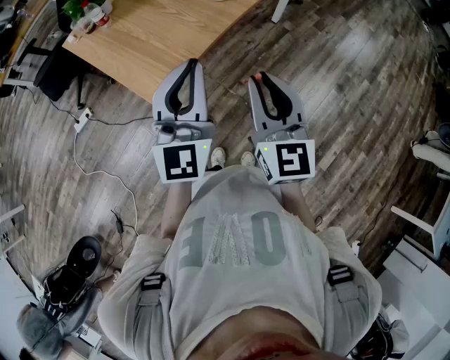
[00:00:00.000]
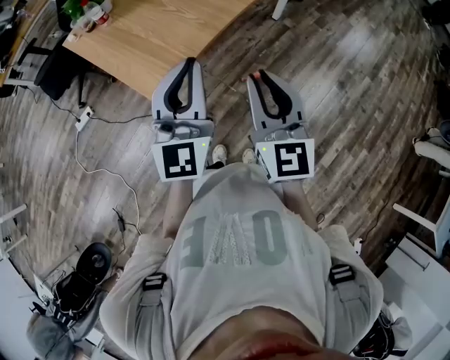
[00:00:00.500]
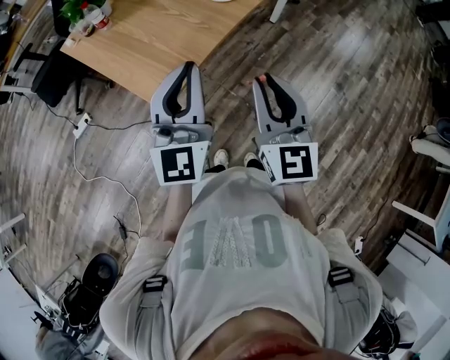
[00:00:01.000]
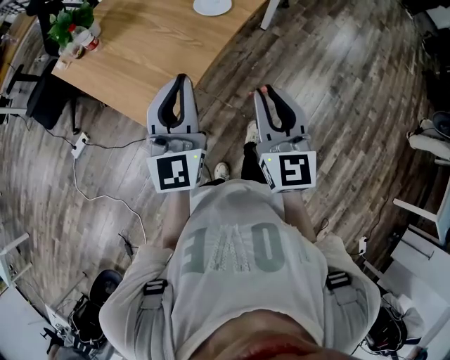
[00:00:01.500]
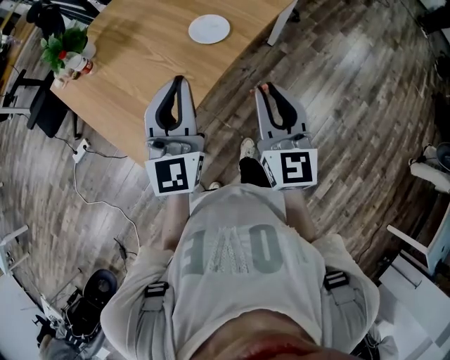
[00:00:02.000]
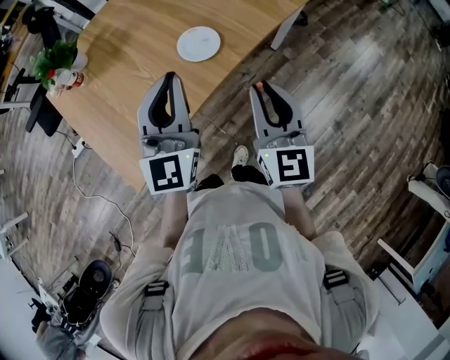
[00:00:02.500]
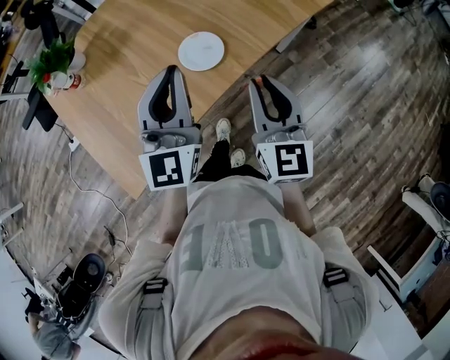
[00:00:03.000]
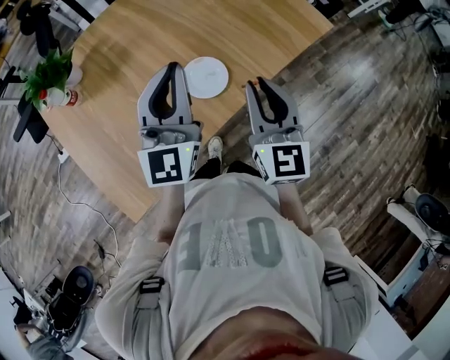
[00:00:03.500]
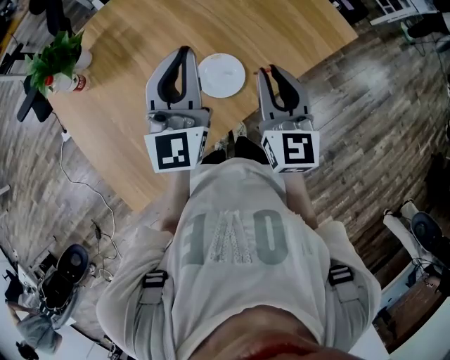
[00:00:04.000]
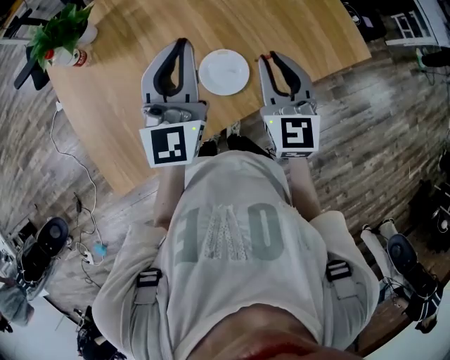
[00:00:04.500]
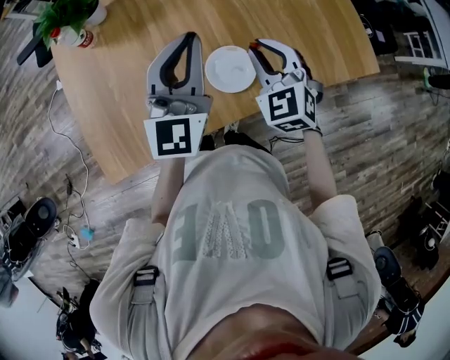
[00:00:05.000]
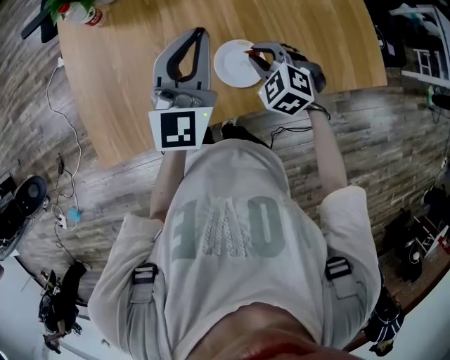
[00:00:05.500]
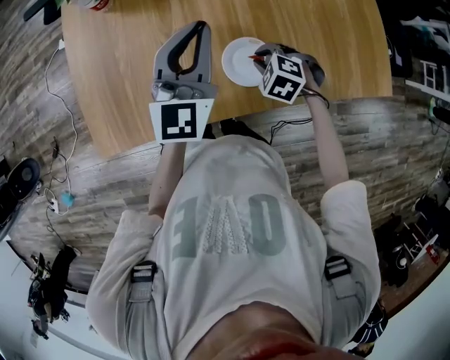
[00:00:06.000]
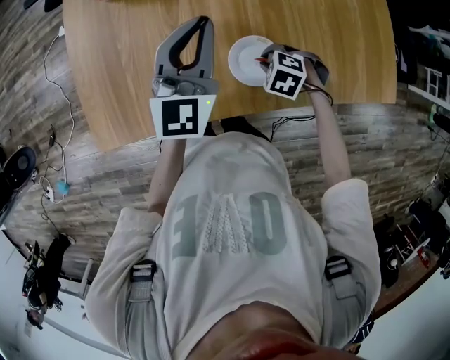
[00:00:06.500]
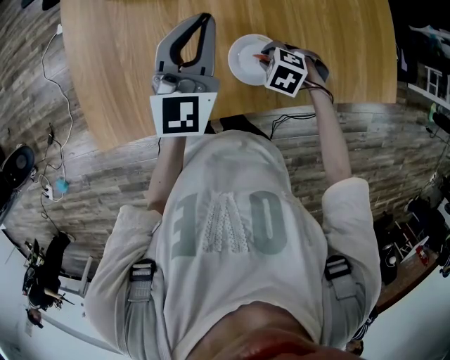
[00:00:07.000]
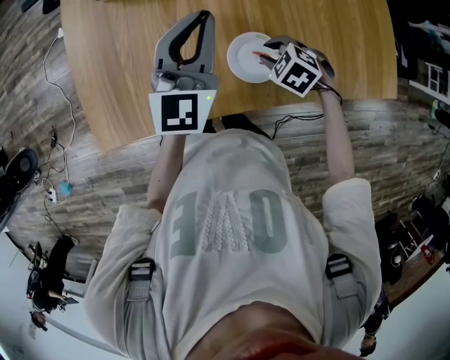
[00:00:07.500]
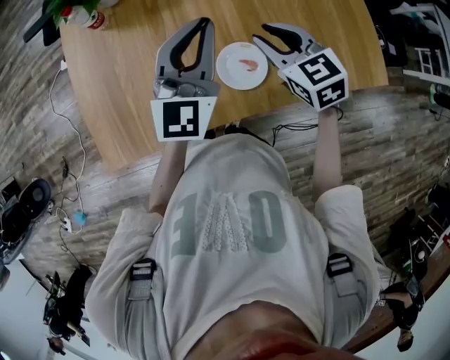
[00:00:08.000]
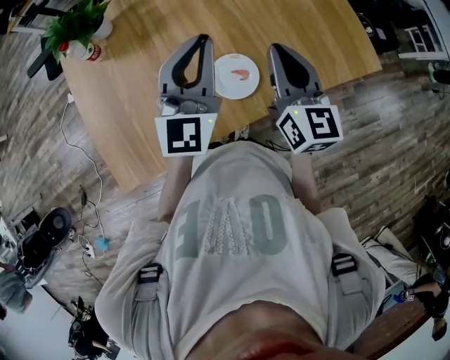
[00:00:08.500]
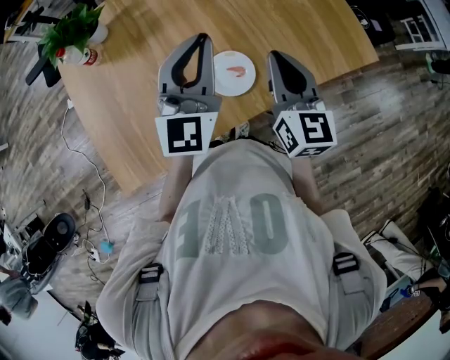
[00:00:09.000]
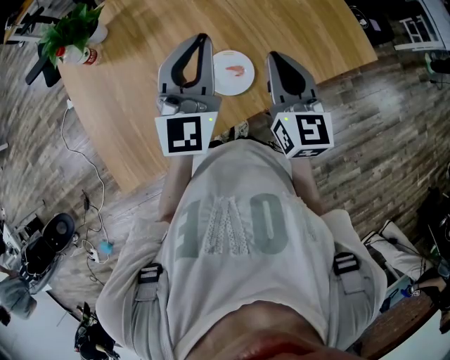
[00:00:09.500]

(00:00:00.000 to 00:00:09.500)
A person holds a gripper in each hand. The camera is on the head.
00:00:00.000 - 00:00:02.000: Both grippers move forward, roughly 20 cm.
00:00:02.000 - 00:00:04.000: The two grippers go some 30 cm forward.
00:00:04.000 - 00:00:05.500: The right gripper shifts approximately 15 cm downward, and angles its fingers downward, by some 50 degrees, while the left gripper moves about 5 cm.
00:00:05.500 - 00:00:07.500: The right gripper moves downward, approximately 5 cm, and changes its angle by some 20 degrees.
00:00:07.500 - 00:00:09.500: The left gripper changes place by roughly 10 cm. The right gripper moves upward, about 25 cm, points its fingers some 60 degrees further upward, and closes up.

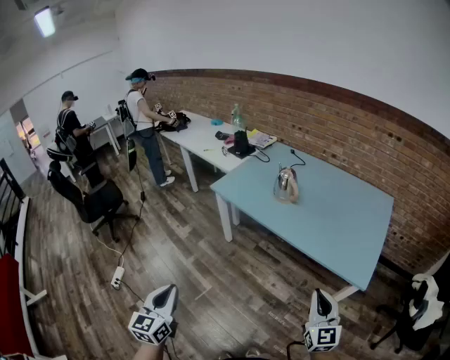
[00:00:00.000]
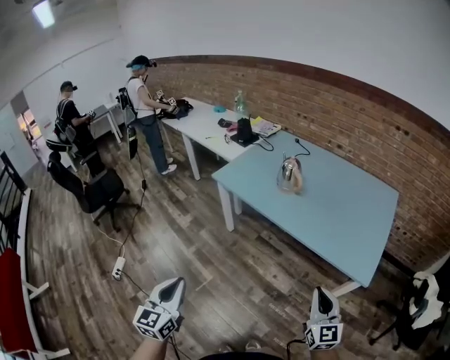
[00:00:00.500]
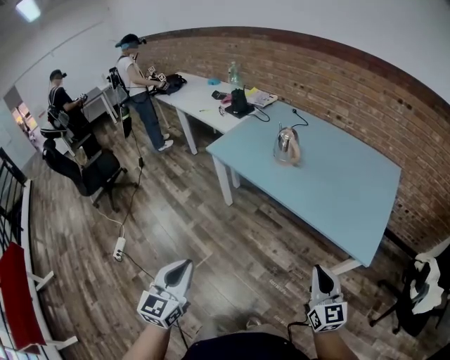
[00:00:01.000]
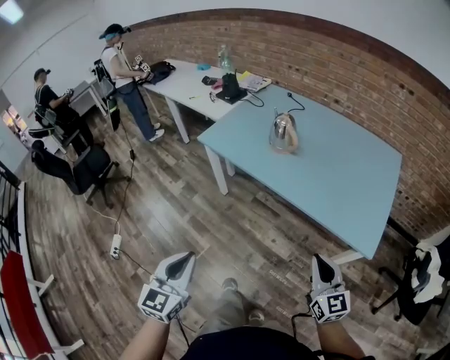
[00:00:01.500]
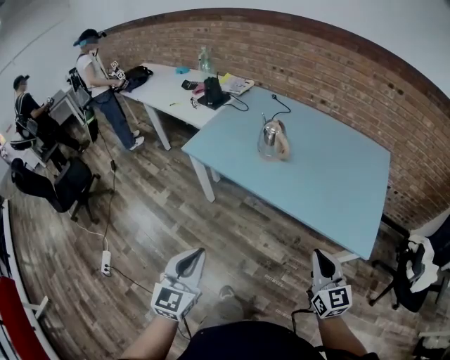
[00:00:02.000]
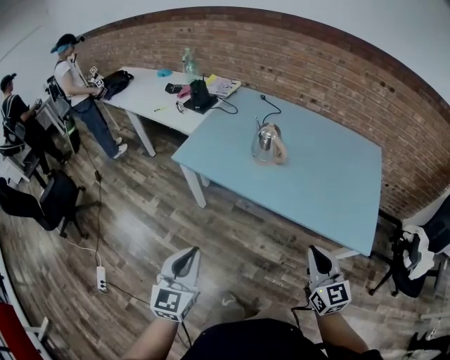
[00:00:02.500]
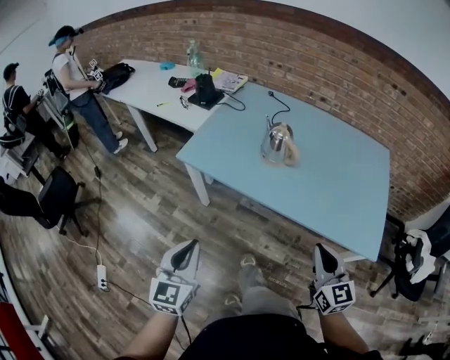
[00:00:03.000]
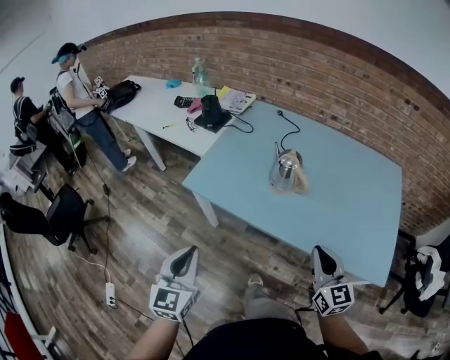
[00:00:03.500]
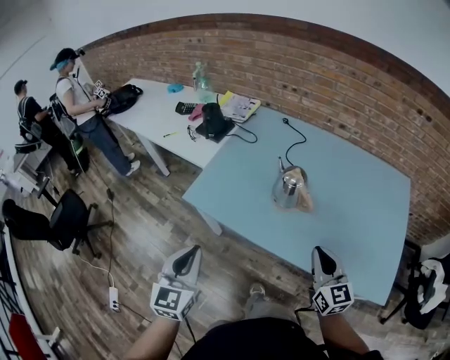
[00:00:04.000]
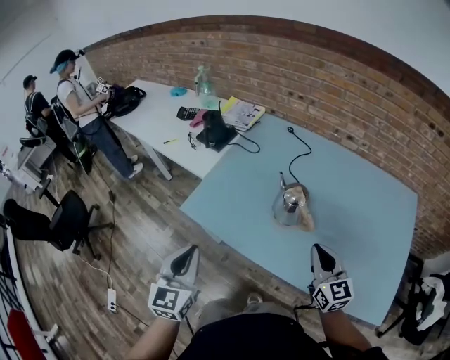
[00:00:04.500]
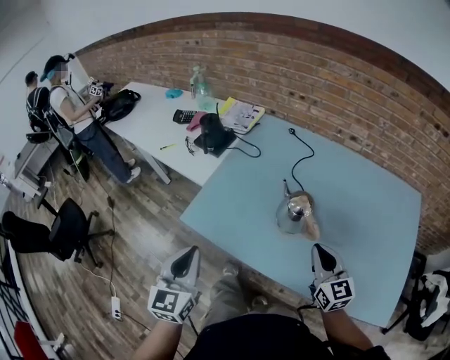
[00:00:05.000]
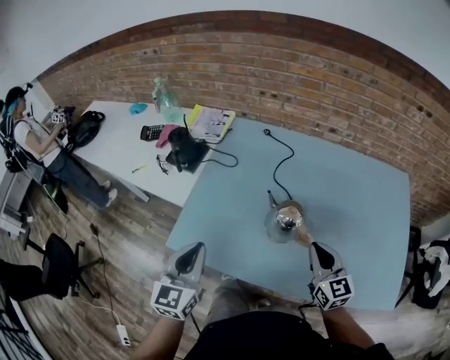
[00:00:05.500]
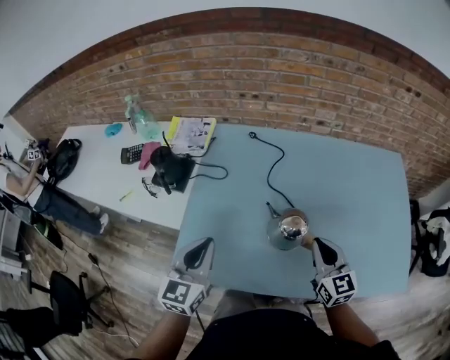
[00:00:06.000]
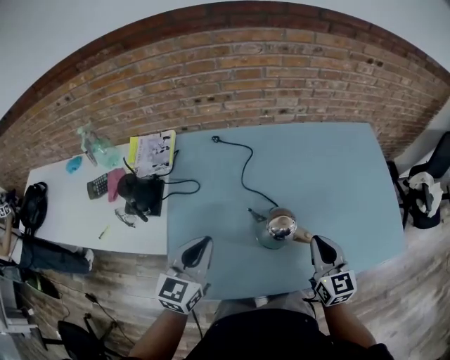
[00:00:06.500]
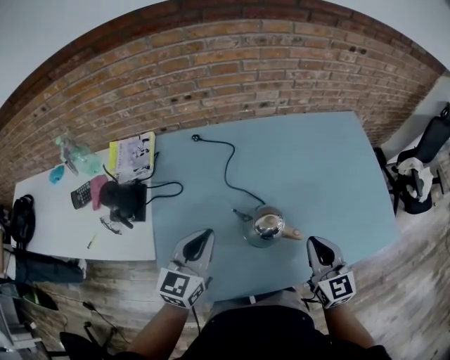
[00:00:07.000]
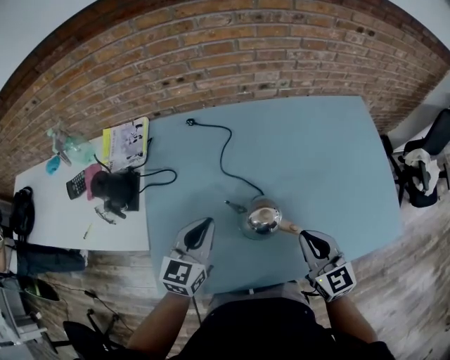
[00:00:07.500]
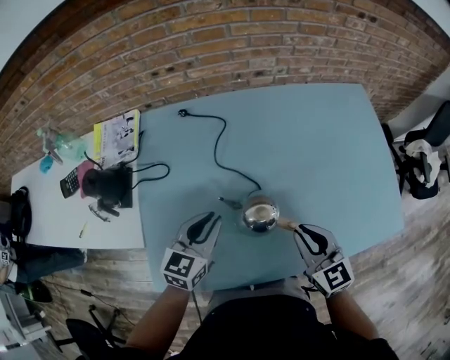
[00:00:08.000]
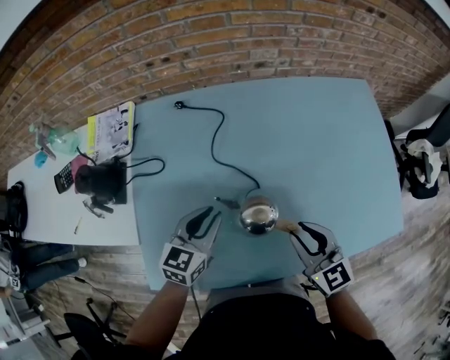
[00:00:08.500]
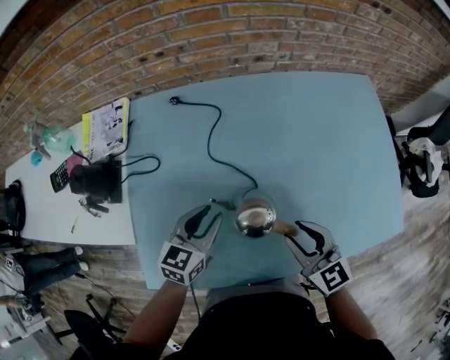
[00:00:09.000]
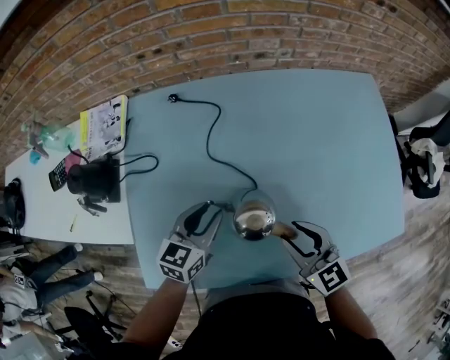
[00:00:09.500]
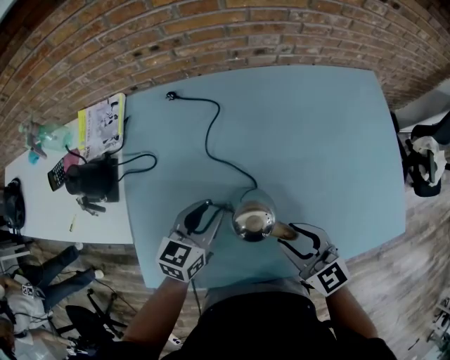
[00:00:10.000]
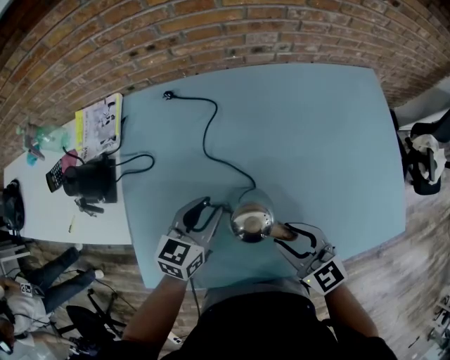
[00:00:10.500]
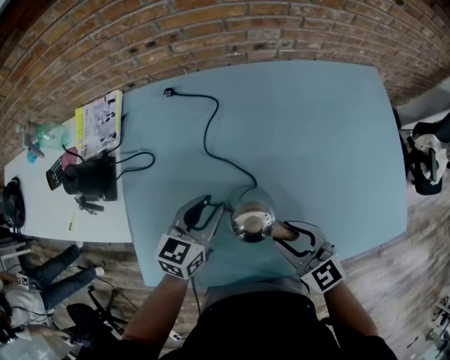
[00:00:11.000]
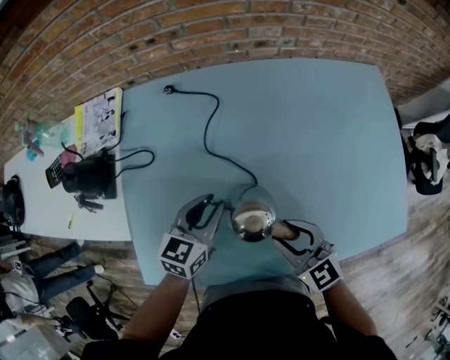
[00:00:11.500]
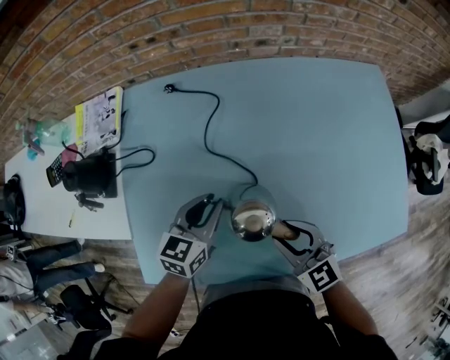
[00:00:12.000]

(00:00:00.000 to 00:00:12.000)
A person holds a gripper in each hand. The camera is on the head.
00:00:00.000 - 00:00:02.000: The right gripper heads forward, covering roughly 10 cm; the left gripper goes some 20 cm forward and to the right, and rotates about 20 degrees.
00:00:02.000 - 00:00:04.000: Both grippers travel together forward, some 25 cm.
00:00:04.000 - 00:00:06.000: The right gripper goes some 20 cm forward, while the left gripper shifts approximately 30 cm forward, and turns by about 20 degrees.
00:00:06.000 - 00:00:08.000: The left gripper moves forward, to the right and downward, some 20 cm, and changes its angle by some 30 degrees.
00:00:08.000 - 00:00:10.000: The left gripper moves some 5 cm. Meanwhile the right gripper opens.
00:00:10.000 - 00:00:12.000: There are only small adjustments of the grippers.

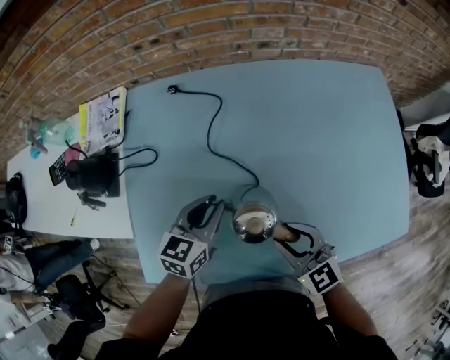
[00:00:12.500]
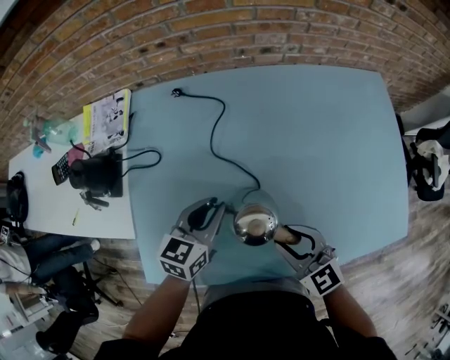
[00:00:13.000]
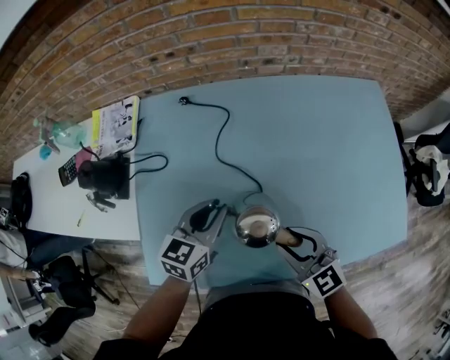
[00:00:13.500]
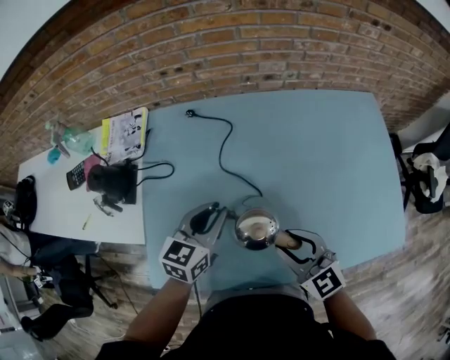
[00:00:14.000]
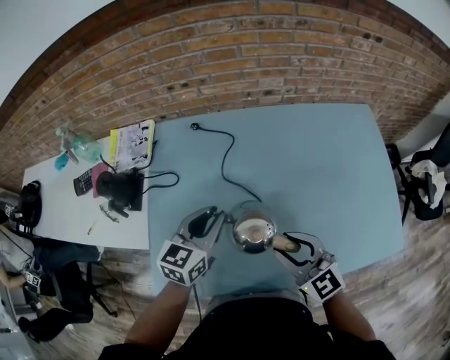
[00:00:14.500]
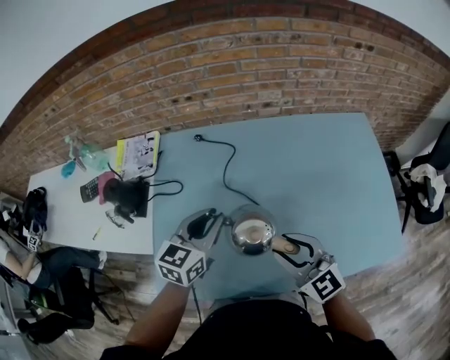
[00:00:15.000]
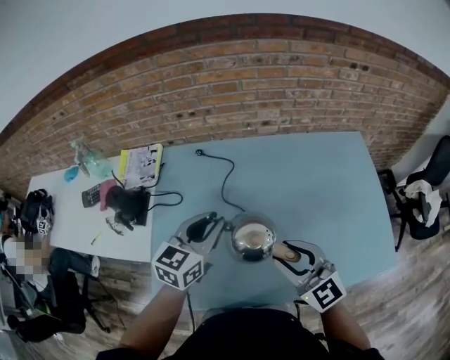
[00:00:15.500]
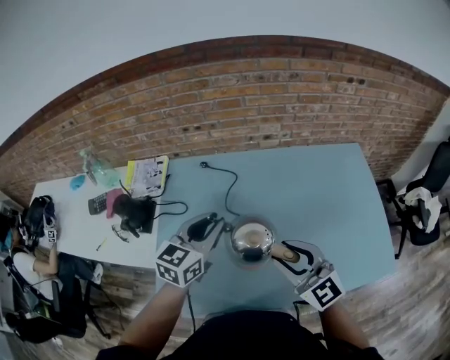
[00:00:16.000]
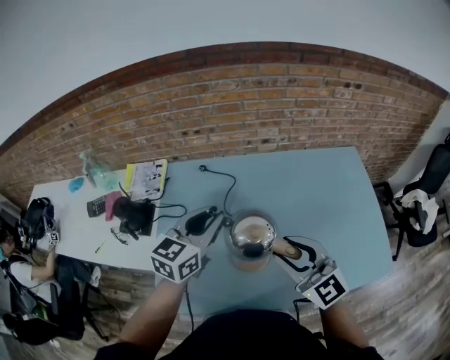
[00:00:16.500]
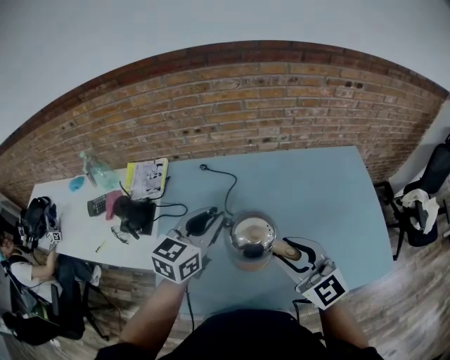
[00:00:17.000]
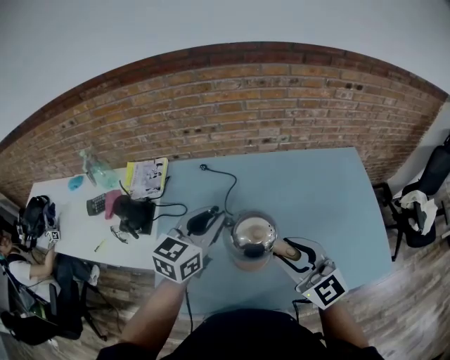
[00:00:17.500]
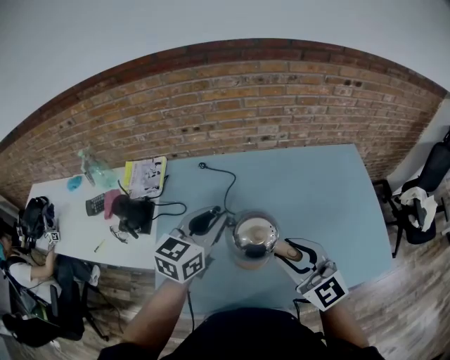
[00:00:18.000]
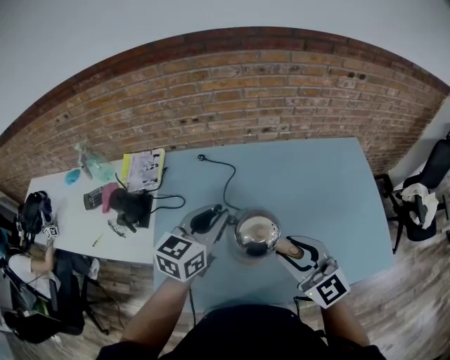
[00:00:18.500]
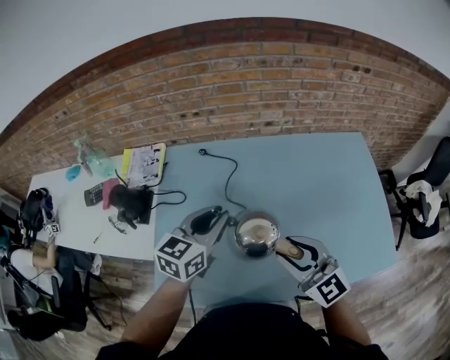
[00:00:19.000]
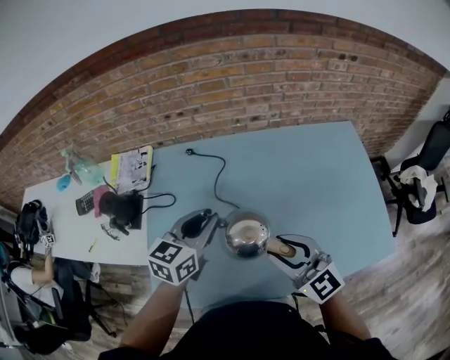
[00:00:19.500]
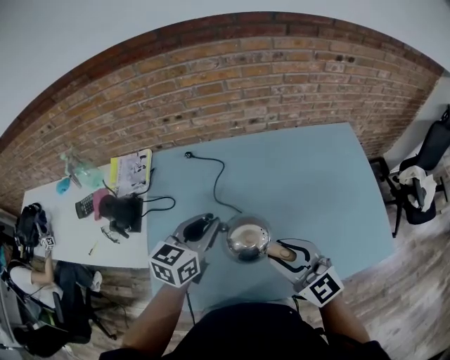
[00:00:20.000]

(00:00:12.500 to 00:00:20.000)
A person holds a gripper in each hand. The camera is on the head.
00:00:12.500 - 00:00:14.500: The two grippers go roughly 10 cm upward.
00:00:14.500 - 00:00:16.500: Both grippers travel together upward, roughly 15 cm.
00:00:16.500 - 00:00:18.000: Both grippers stay put.
00:00:18.000 - 00:00:20.000: The two grippers go some 5 cm downward.
